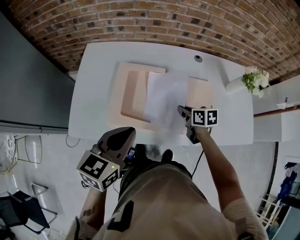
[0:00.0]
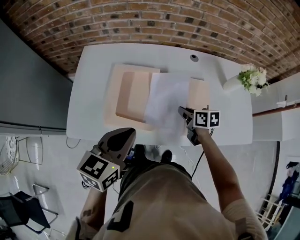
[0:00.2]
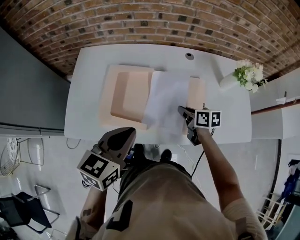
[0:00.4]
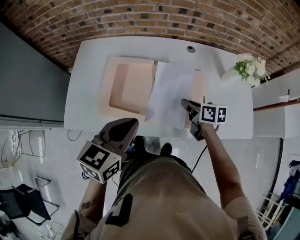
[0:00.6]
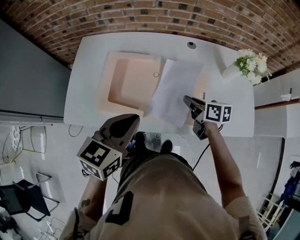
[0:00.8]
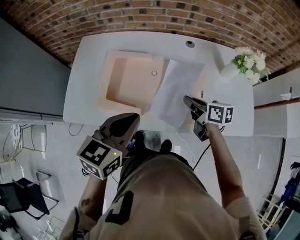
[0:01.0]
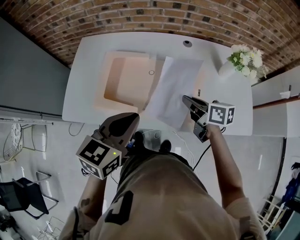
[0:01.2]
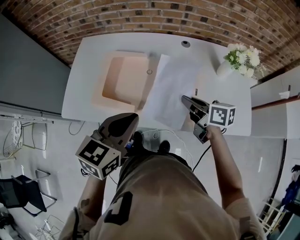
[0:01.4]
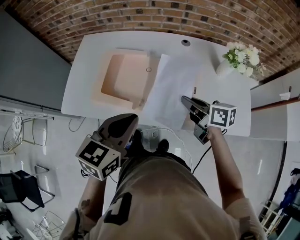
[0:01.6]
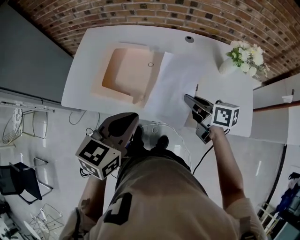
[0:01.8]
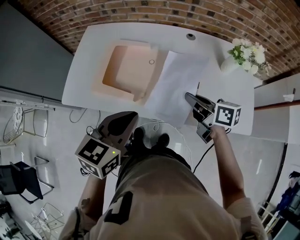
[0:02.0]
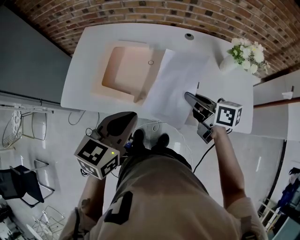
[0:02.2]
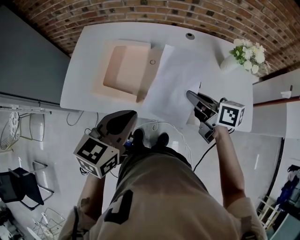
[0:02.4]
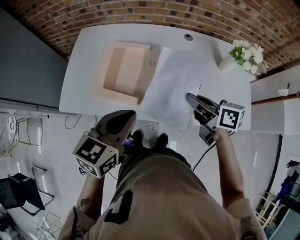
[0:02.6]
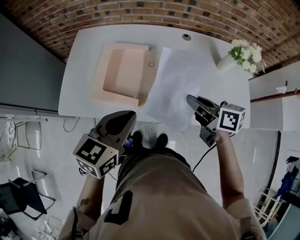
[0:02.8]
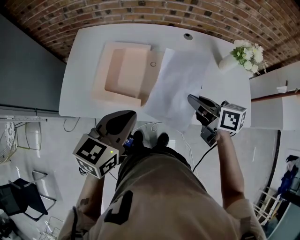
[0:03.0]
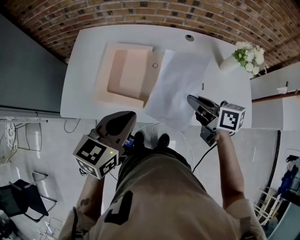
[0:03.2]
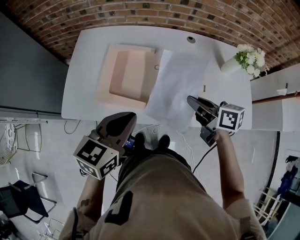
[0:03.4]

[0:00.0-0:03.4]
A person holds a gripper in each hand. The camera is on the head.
0:00.0 to 0:01.6: The right gripper shifts approximately 15 cm upward, to the right and backward, and changes its angle by about 30 degrees; the left gripper goes approximately 15 cm to the right and backward.
0:01.6 to 0:03.4: The grippers both shift to the left by about 5 cm.

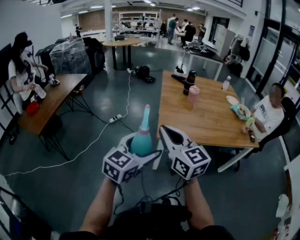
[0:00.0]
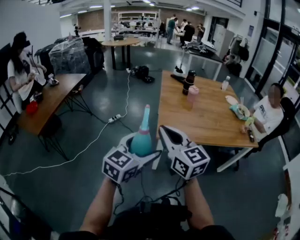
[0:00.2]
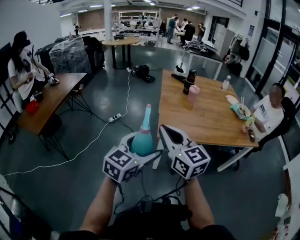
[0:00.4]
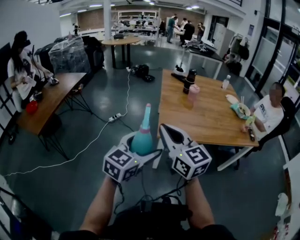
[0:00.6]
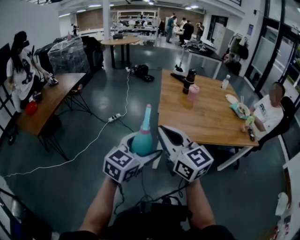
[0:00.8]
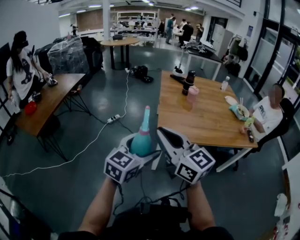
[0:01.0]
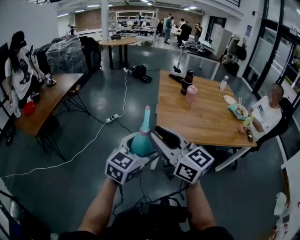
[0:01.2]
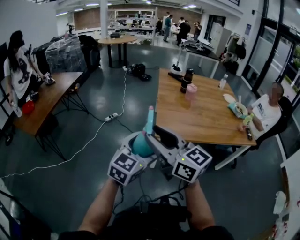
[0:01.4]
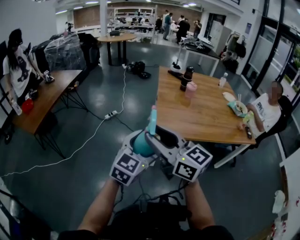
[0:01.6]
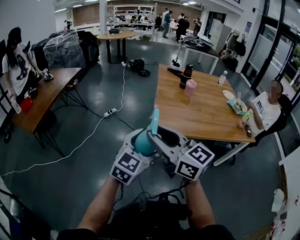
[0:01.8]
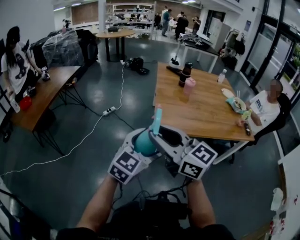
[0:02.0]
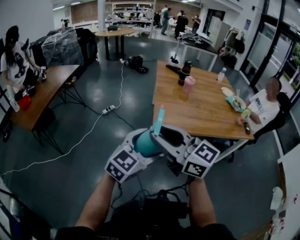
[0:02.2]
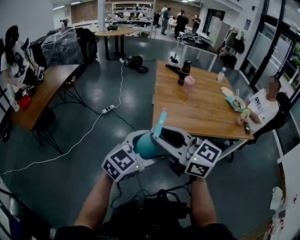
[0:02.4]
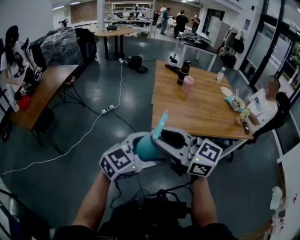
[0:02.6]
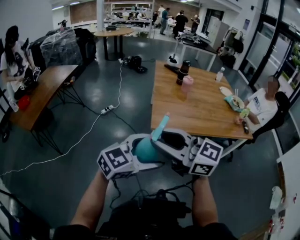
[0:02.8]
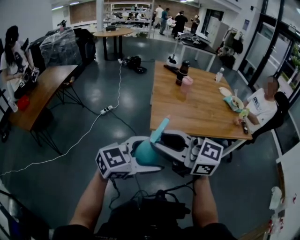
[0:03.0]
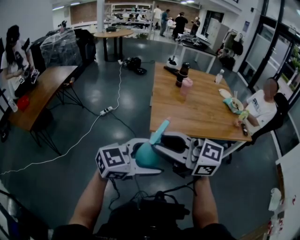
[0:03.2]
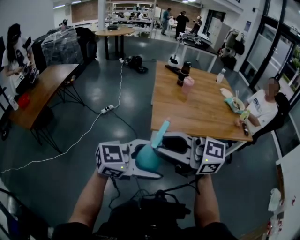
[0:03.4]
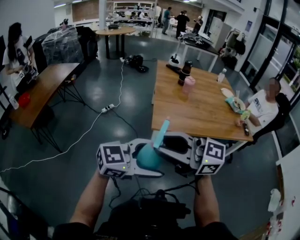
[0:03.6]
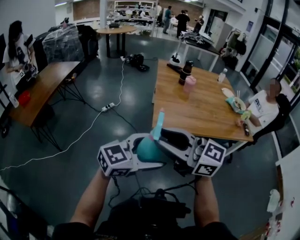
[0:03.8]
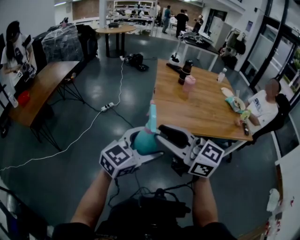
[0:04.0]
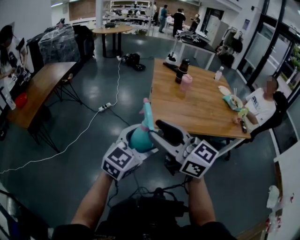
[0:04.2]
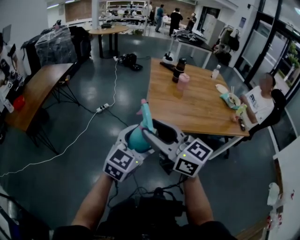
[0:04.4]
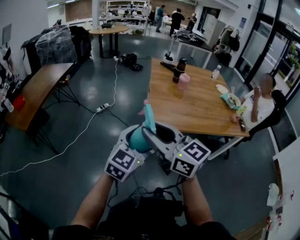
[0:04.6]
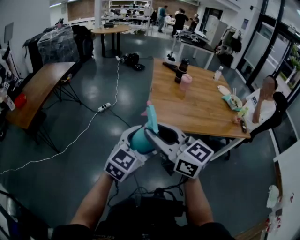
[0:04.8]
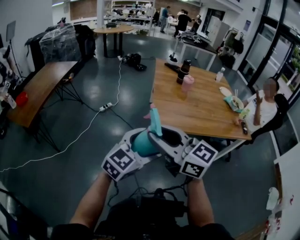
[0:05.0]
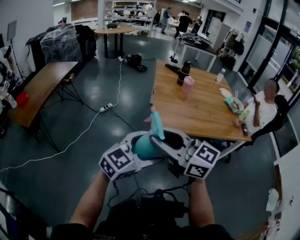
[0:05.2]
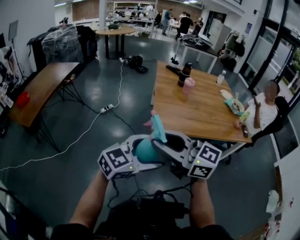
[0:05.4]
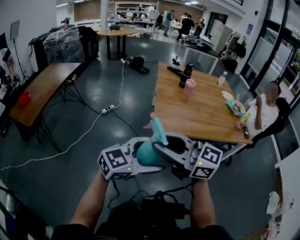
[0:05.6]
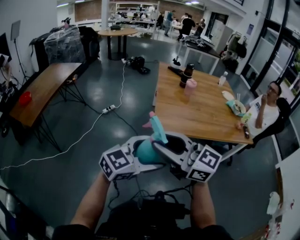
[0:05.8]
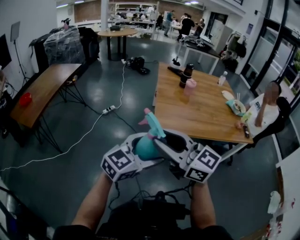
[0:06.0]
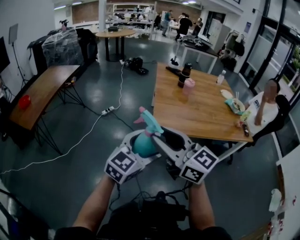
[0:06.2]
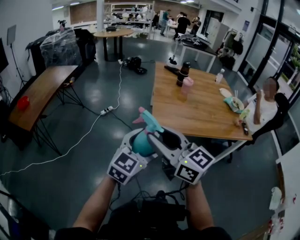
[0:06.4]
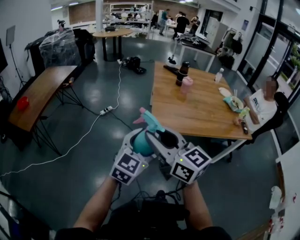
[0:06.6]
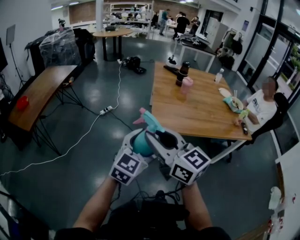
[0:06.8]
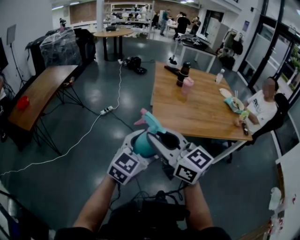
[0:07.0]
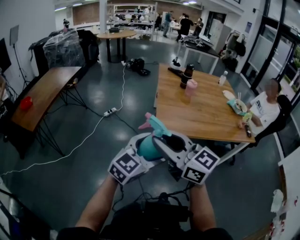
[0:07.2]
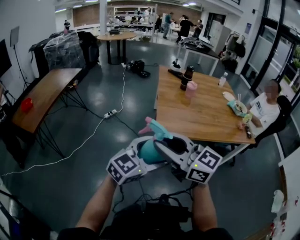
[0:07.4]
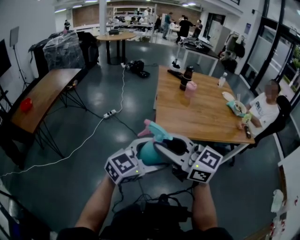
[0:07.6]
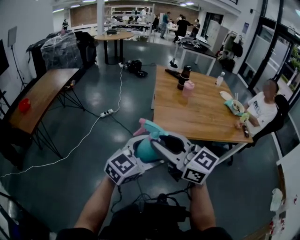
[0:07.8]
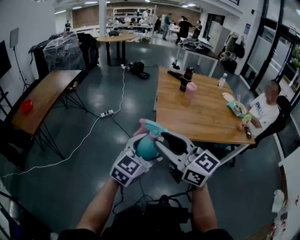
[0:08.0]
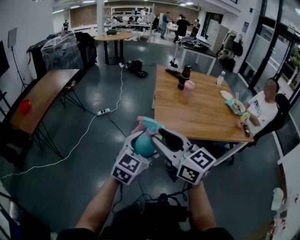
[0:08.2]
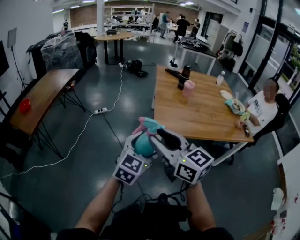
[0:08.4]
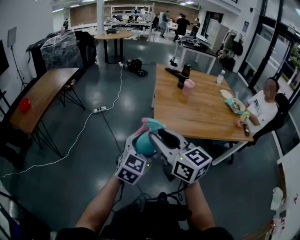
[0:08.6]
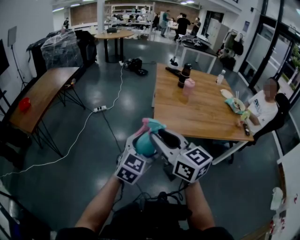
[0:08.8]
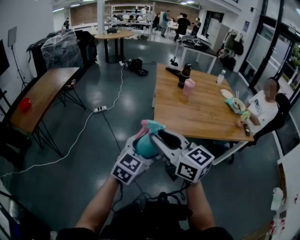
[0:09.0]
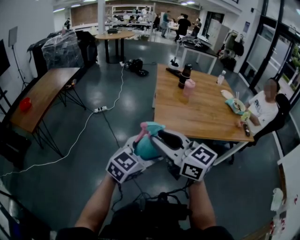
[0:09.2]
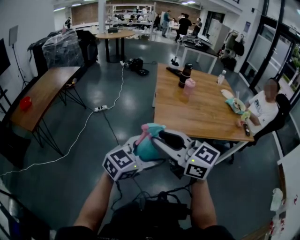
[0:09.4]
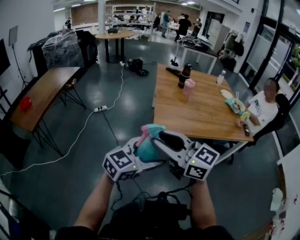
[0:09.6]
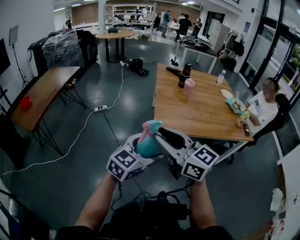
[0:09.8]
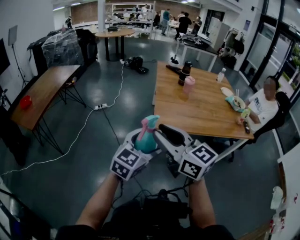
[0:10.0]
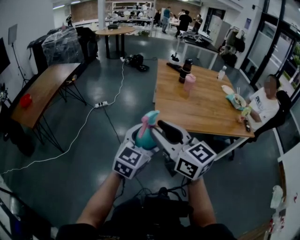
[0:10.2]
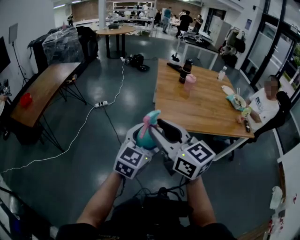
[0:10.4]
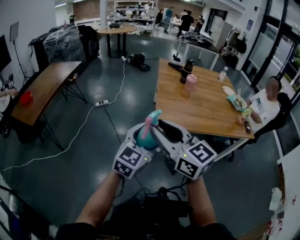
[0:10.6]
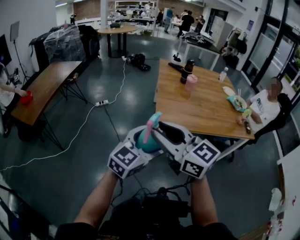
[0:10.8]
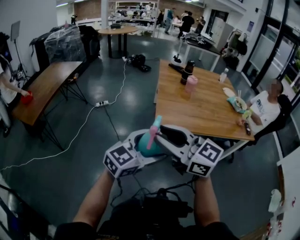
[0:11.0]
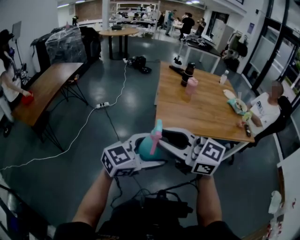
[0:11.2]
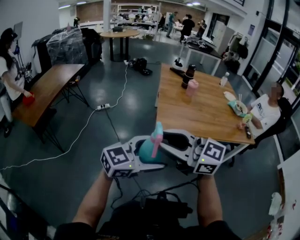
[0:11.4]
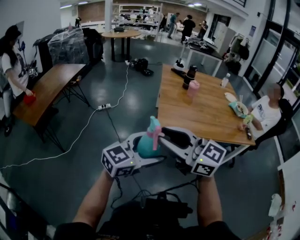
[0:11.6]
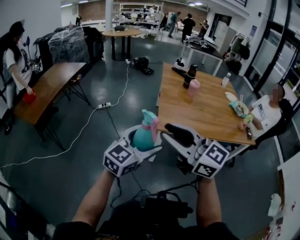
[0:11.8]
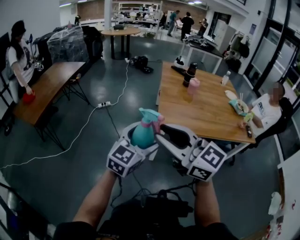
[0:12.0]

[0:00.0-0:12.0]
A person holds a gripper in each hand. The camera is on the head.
0:00.0 to 0:01.6: The right gripper changes place by approximately 5 cm, and opens its fingers.
0:01.6 to 0:03.0: The right gripper moves roughly 5 cm. The left gripper shifts by roughly 10 cm, and swivels about 30 degrees.
0:03.0 to 0:04.4: The left gripper changes place by approximately 10 cm, and changes its angle by some 30 degrees.
0:06.0 to 0:07.6: The grippers move only a little.
0:07.6 to 0:09.0: The left gripper shifts by roughly 5 cm, and rotates approximately 20 degrees.

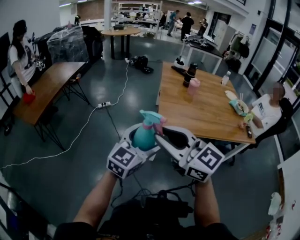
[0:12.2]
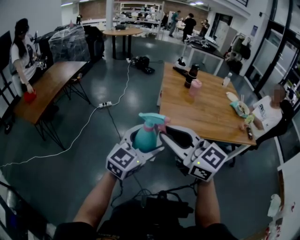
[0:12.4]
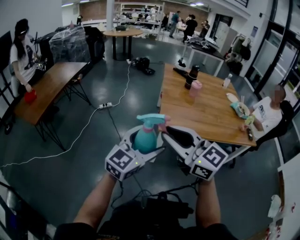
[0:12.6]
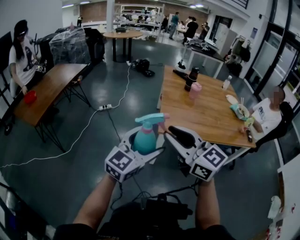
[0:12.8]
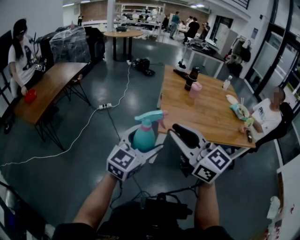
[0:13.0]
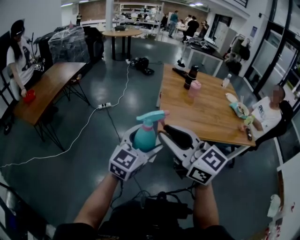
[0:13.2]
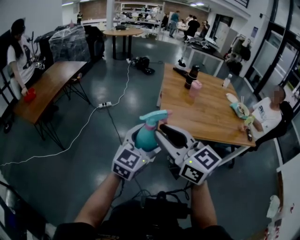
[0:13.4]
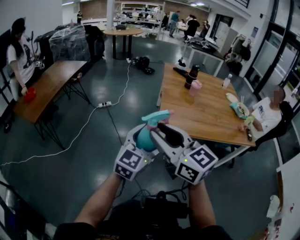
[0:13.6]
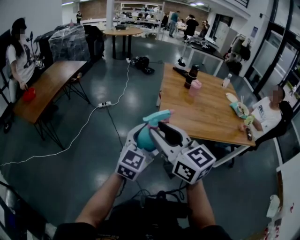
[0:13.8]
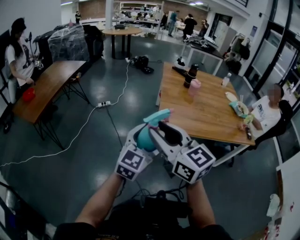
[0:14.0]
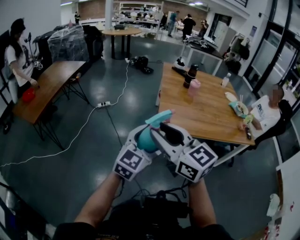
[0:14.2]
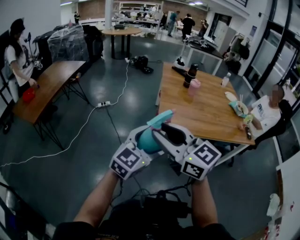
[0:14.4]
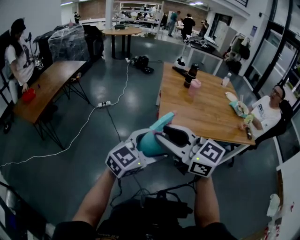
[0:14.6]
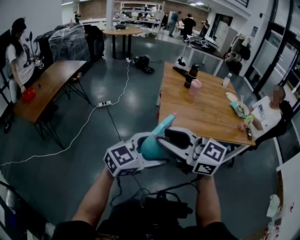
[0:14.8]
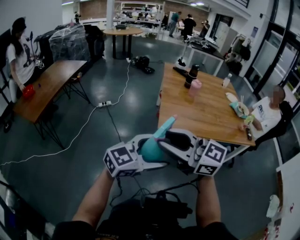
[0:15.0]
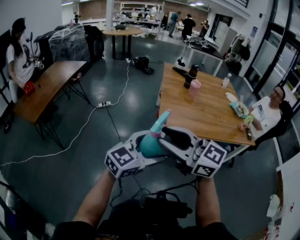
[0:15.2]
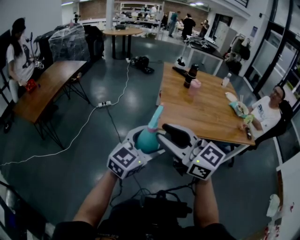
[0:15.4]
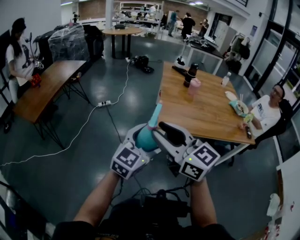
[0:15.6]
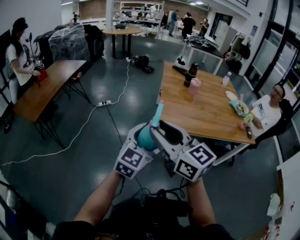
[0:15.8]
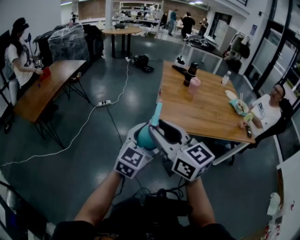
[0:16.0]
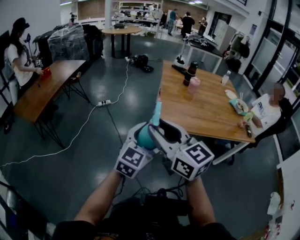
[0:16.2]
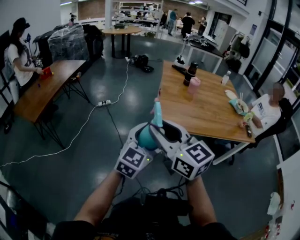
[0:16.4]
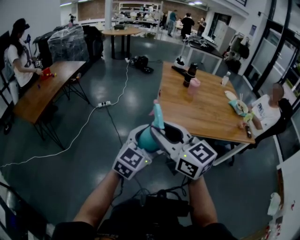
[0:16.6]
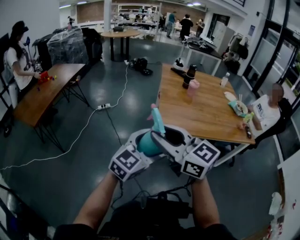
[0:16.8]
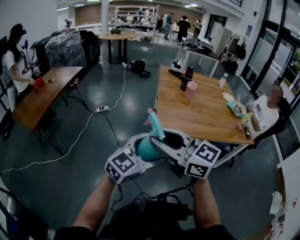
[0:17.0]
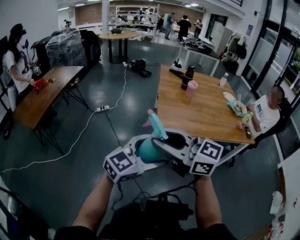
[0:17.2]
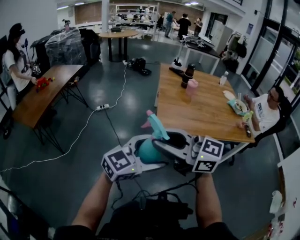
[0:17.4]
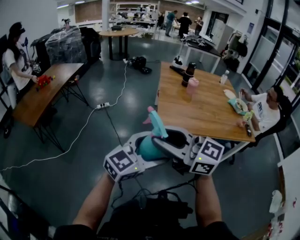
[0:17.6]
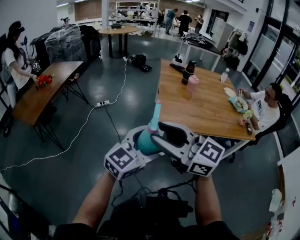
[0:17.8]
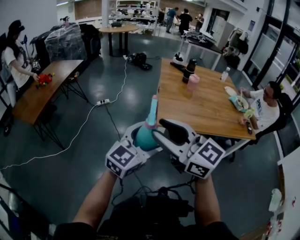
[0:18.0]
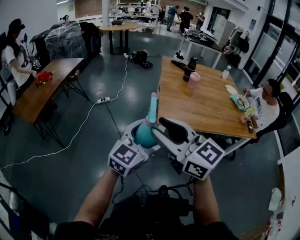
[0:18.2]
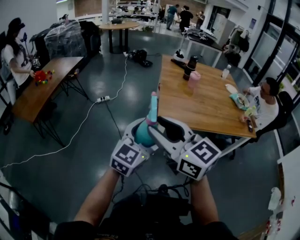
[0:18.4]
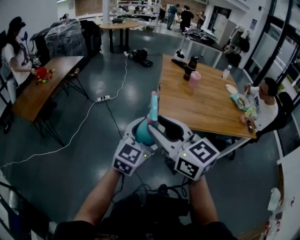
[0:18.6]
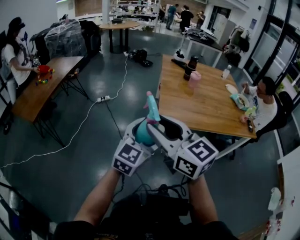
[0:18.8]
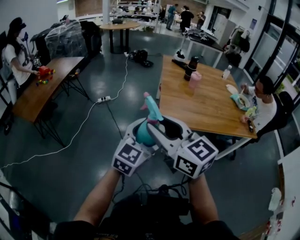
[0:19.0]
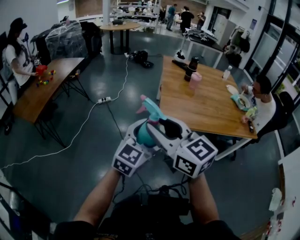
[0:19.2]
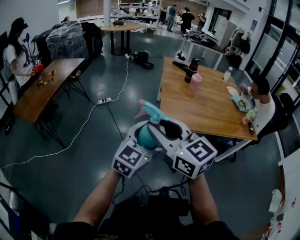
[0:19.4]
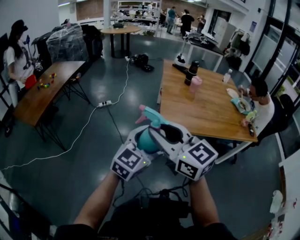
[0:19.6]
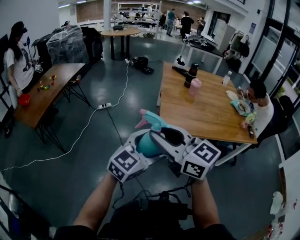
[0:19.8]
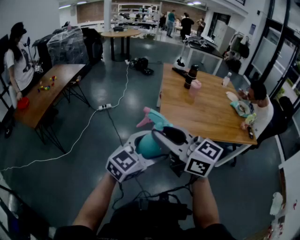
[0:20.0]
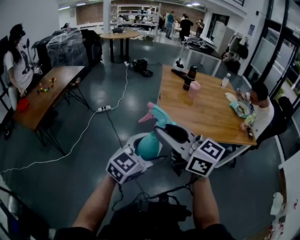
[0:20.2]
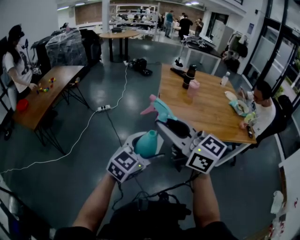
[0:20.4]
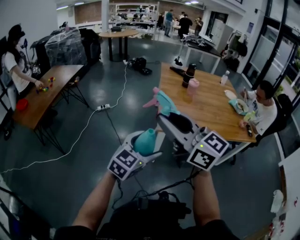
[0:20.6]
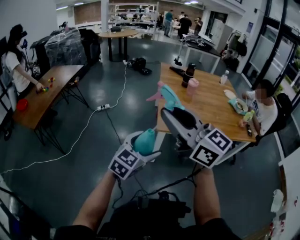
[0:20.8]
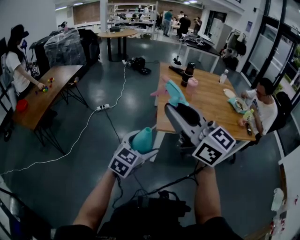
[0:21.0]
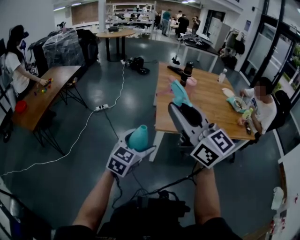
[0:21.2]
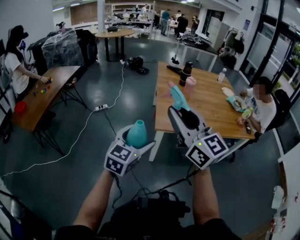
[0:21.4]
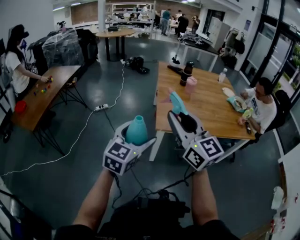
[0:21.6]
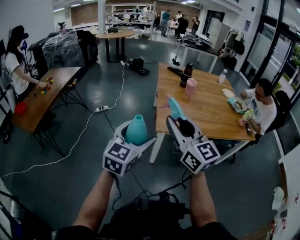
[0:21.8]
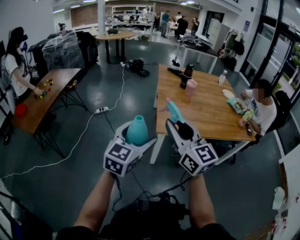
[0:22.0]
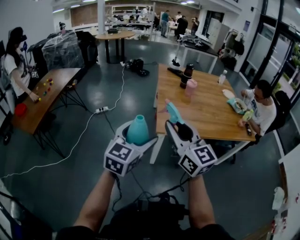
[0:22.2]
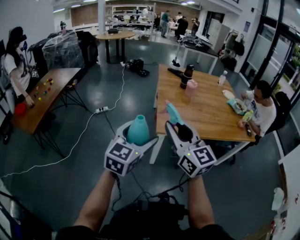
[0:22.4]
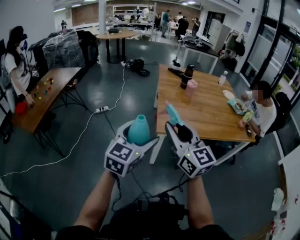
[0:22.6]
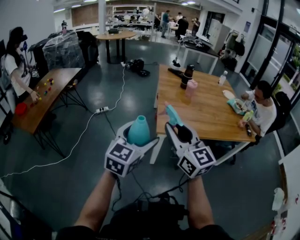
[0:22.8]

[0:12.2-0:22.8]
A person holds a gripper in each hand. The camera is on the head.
0:12.2 to 0:13.8: The grippers make only small movements.
0:13.8 to 0:15.2: The left gripper moves approximately 5 cm, and turns by some 30 degrees. Meanwhile the right gripper turns by approximately 20 degrees.
0:16.8 to 0:19.8: The grippers make only small movements.
0:19.8 to 0:21.2: The right gripper is displaced upward and to the right by some 10 cm, and rotates roughly 20 degrees; the left gripper heads downward, covering about 5 cm.
0:21.2 to 0:22.8: The left gripper is displaced upward by approximately 10 cm; the right gripper heads downward, covering approximately 10 cm.
